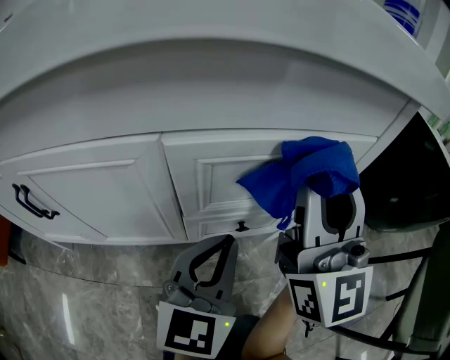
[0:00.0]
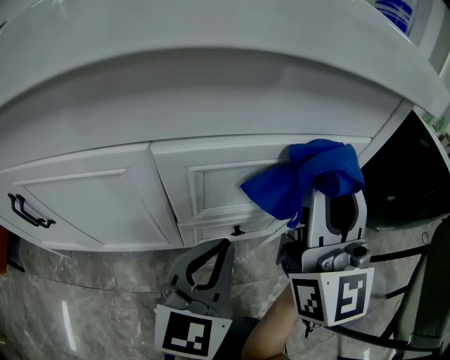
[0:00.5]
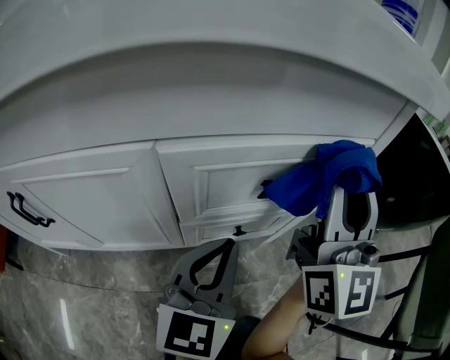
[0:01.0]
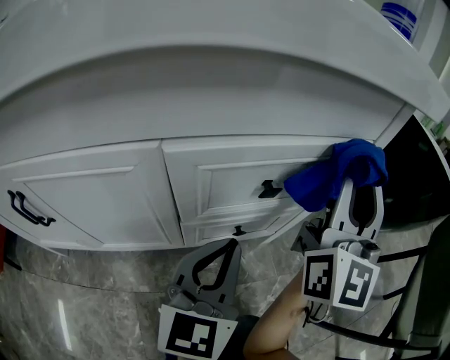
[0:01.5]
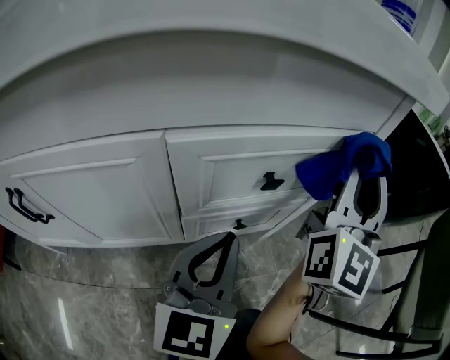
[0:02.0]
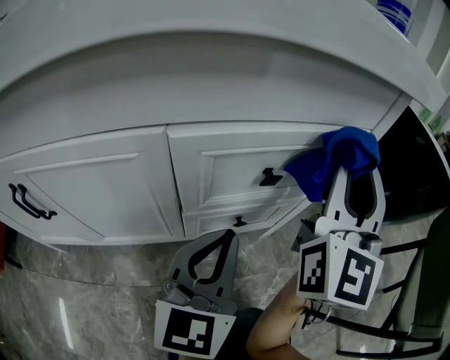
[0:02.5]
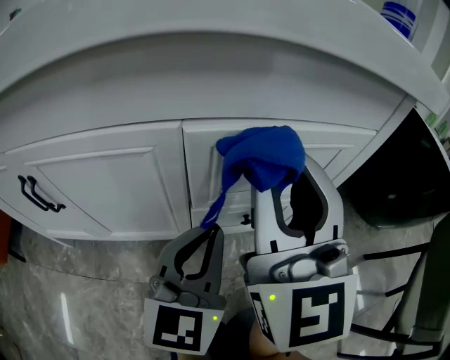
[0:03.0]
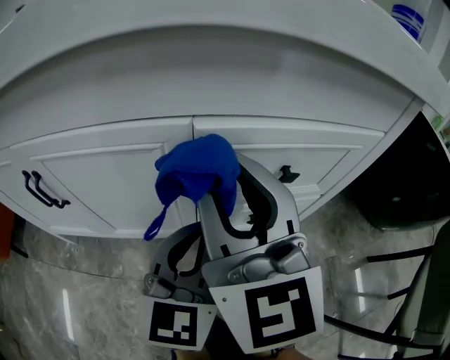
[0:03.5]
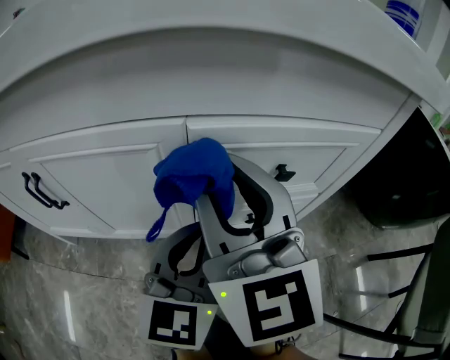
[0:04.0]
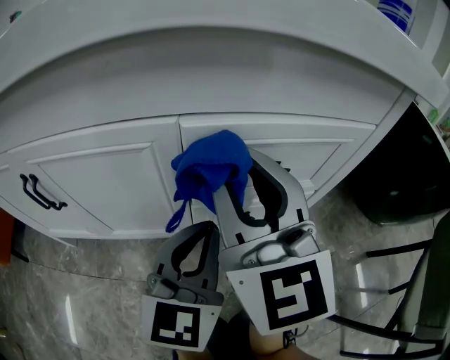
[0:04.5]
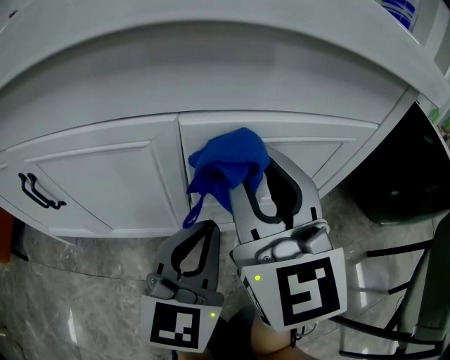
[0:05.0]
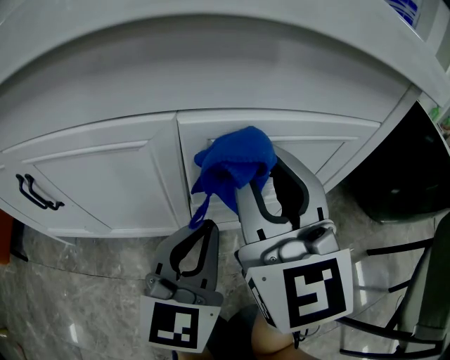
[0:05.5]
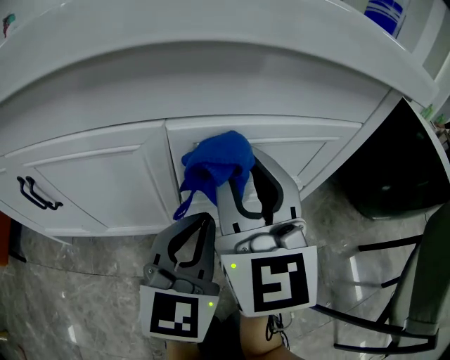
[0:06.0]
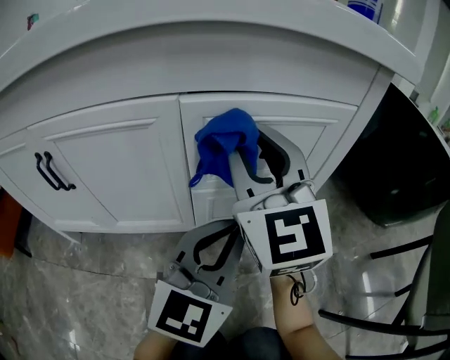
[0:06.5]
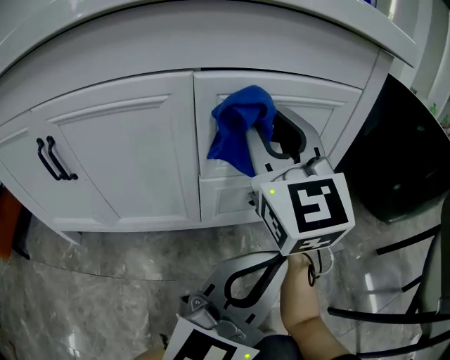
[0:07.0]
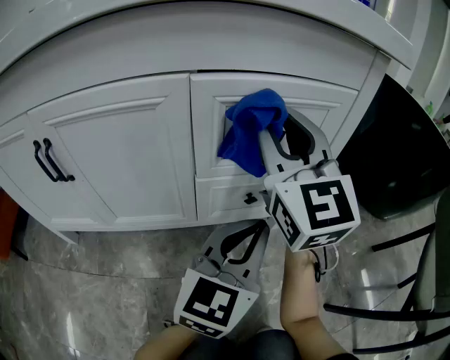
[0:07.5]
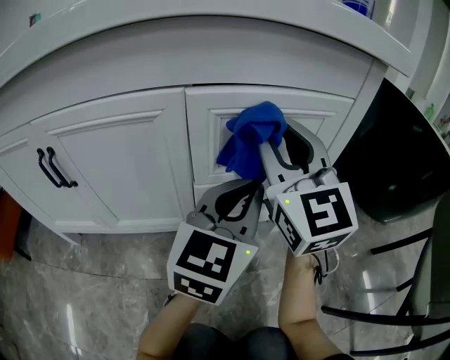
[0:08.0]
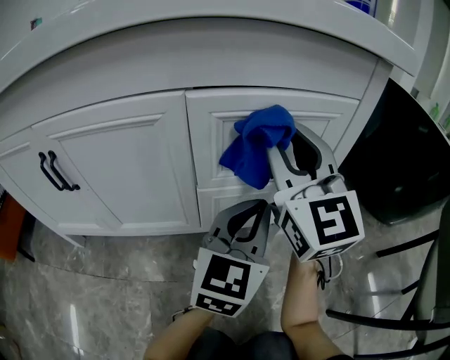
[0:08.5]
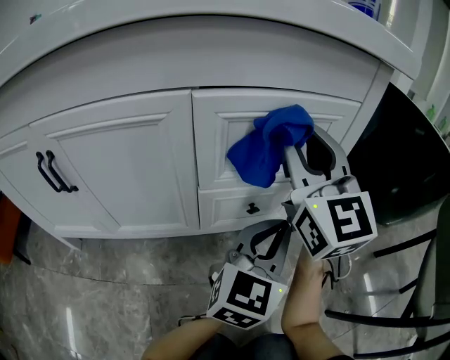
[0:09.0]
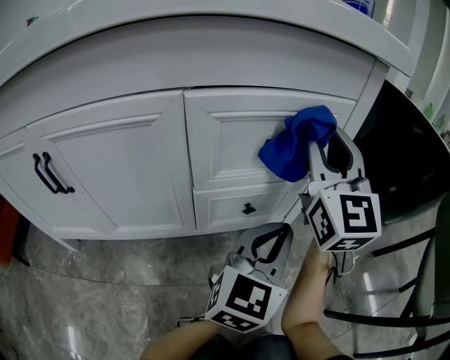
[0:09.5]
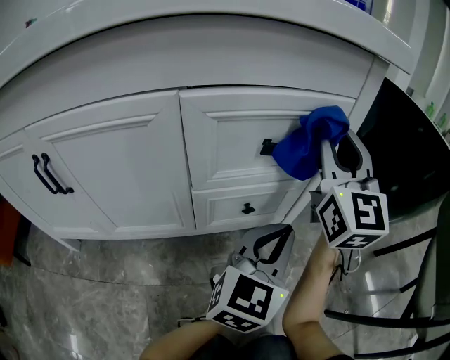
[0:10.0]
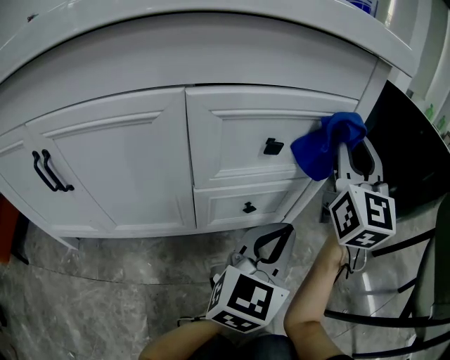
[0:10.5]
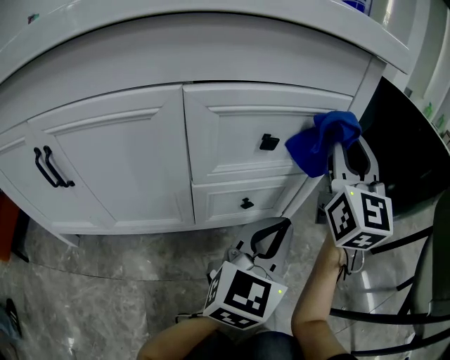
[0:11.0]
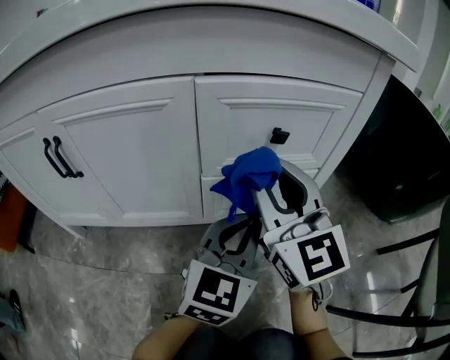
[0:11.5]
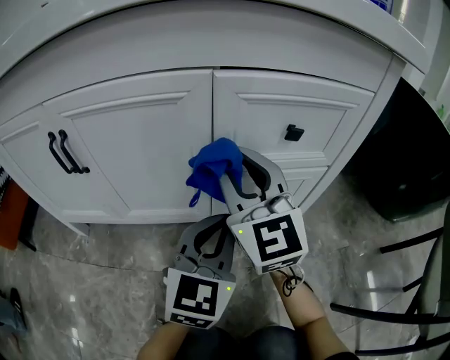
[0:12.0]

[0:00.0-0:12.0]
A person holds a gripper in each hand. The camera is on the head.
0:00.0 to 0:02.0: The right gripper heads to the right, covering about 10 cm, and turns by roughly 30 degrees.
0:02.0 to 0:04.0: The right gripper moves approximately 25 cm, and swivels about 50 degrees; the left gripper ends up some 5 cm from where it was.
0:04.0 to 0:06.0: The right gripper moves approximately 5 cm.
0:06.0 to 0:08.0: The left gripper is displaced to the right by roughly 5 cm, and goes backward and returns, some 10 cm each way.
0:08.0 to 0:10.0: The left gripper shifts about 10 cm to the right and downward, while the right gripper goes approximately 10 cm to the right.
0:10.0 to 0:12.0: The left gripper ends up some 15 cm from where it was, and turns by some 20 degrees. Meanwhile the right gripper moves roughly 25 cm, and turns by some 30 degrees.

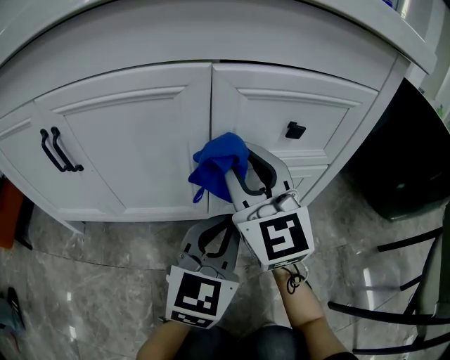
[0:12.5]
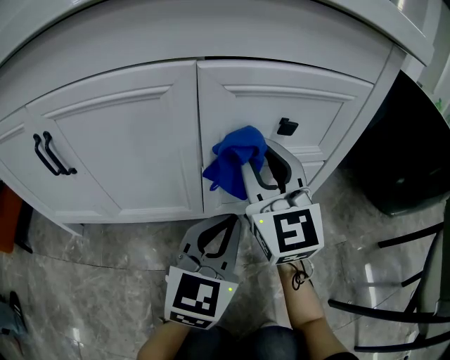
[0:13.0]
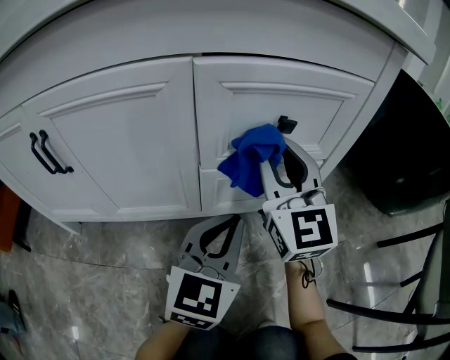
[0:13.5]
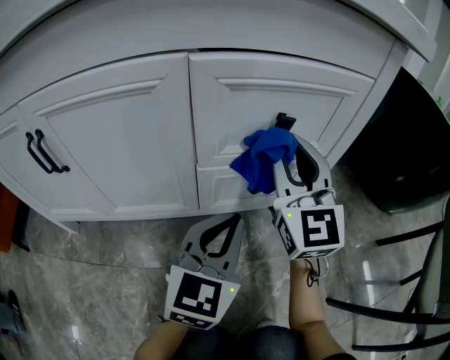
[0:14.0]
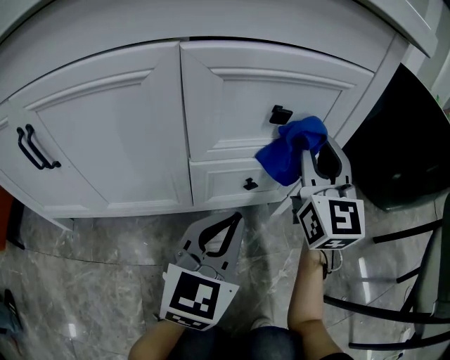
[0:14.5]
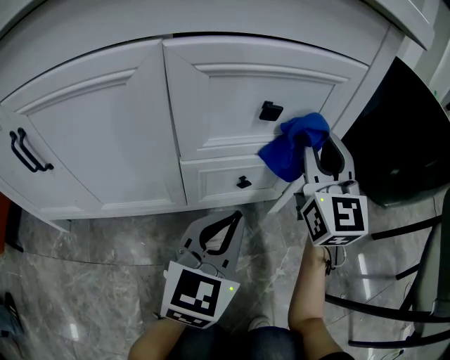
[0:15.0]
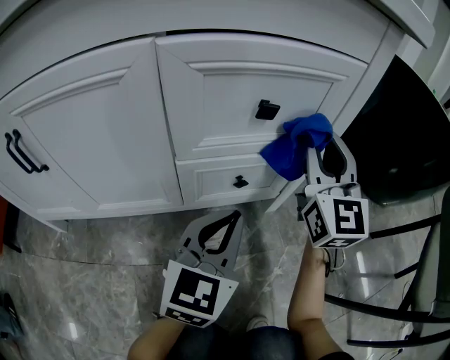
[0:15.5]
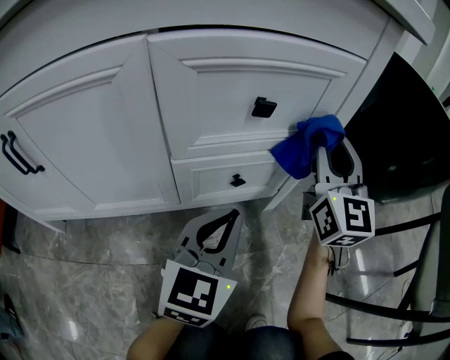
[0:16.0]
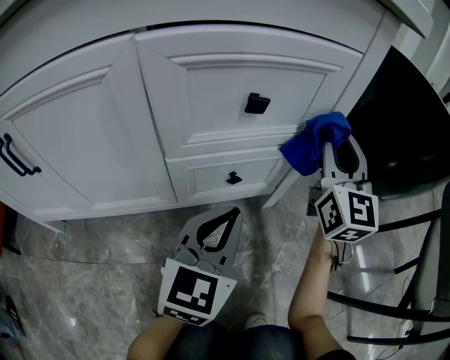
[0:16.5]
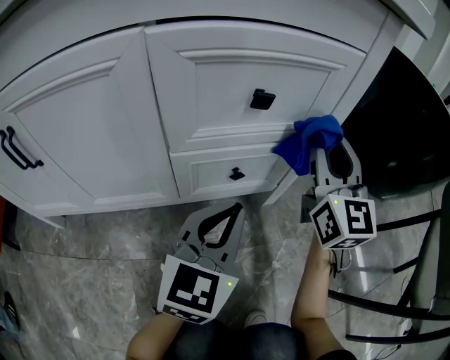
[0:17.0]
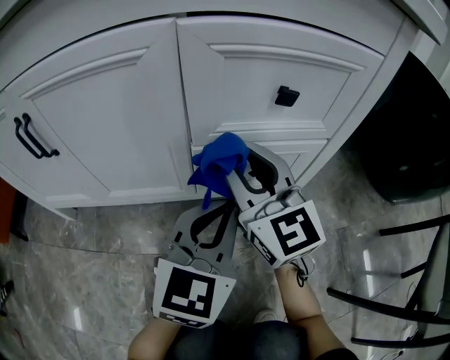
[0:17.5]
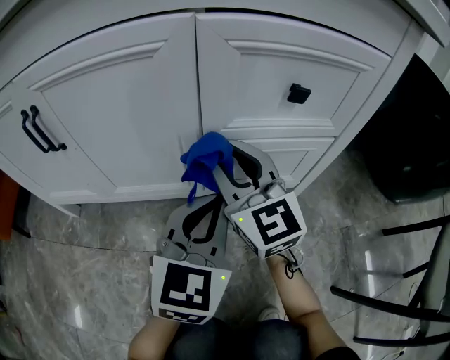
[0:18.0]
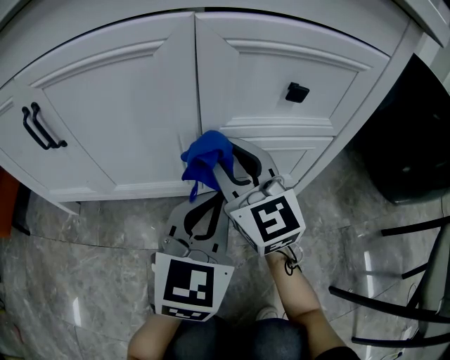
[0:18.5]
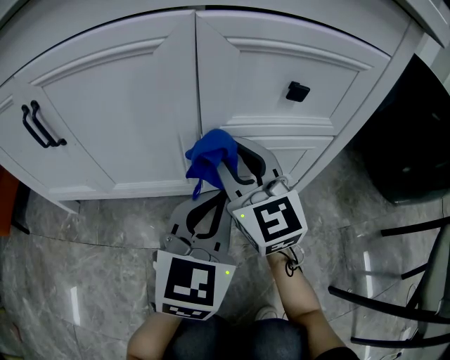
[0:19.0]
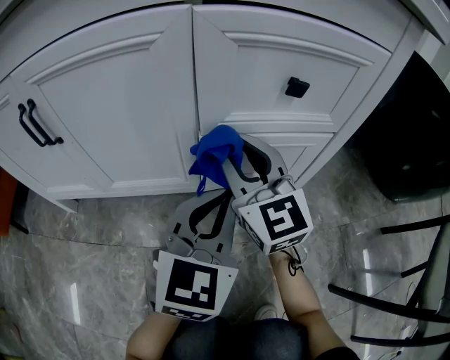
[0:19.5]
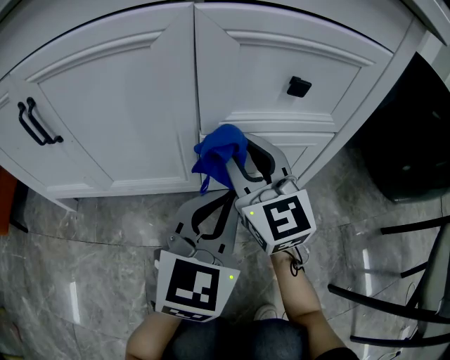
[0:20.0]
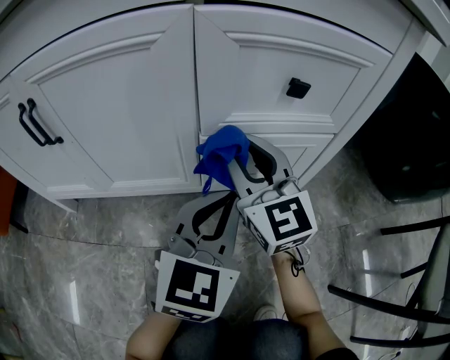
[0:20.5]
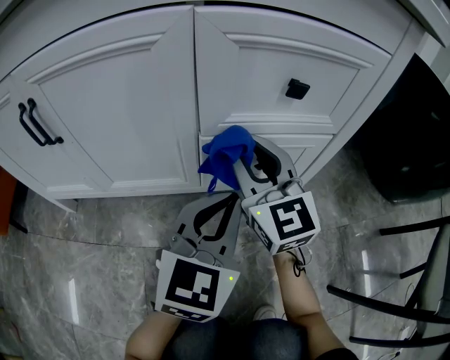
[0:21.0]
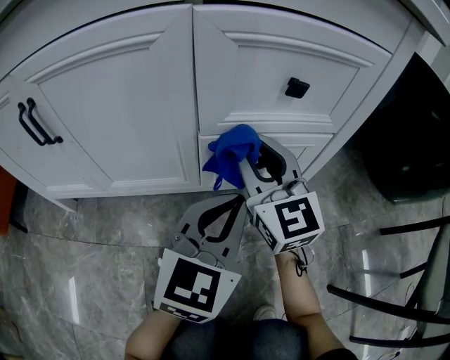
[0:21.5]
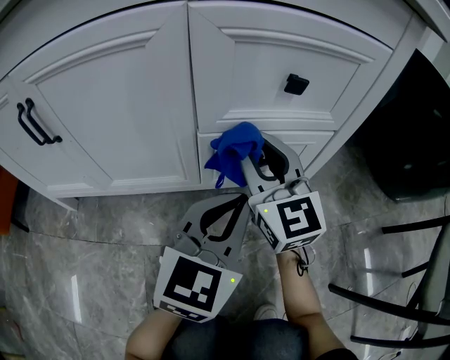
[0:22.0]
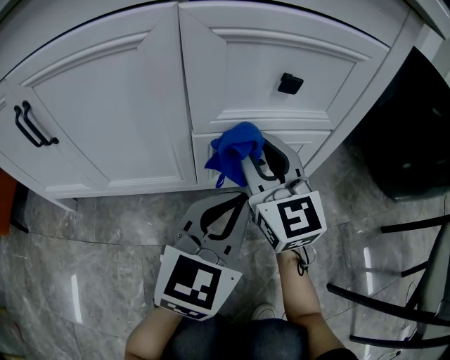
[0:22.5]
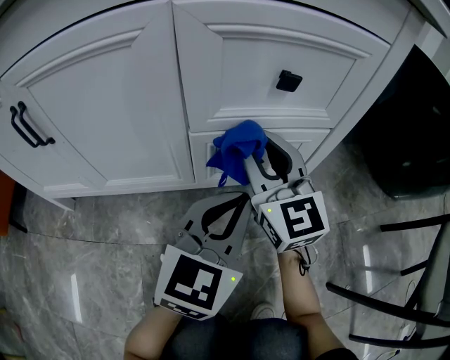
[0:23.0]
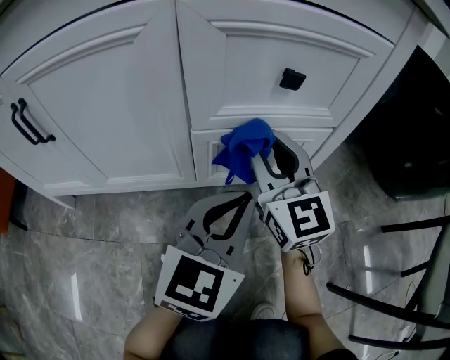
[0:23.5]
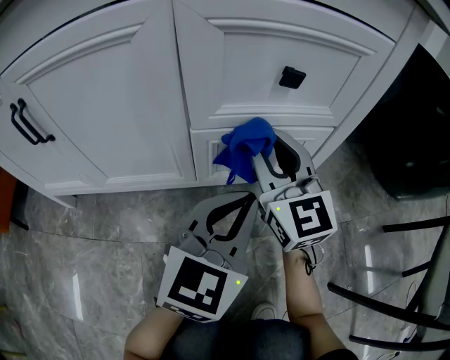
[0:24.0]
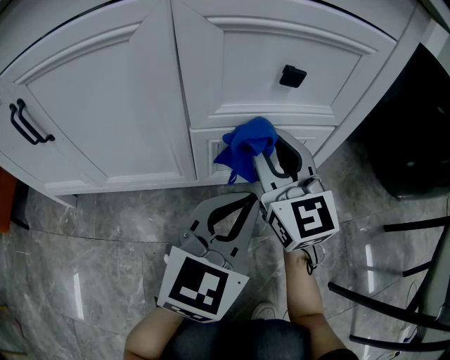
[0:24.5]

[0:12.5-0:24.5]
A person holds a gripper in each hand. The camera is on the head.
0:12.5 to 0:14.5: The right gripper travels to the right by approximately 20 cm, and swivels approximately 20 degrees.
0:14.5 to 0:16.5: The right gripper goes roughly 10 cm to the right.
0:16.5 to 0:18.5: The right gripper moves approximately 30 cm, and turns by roughly 40 degrees; the left gripper changes place by some 10 cm.
0:18.5 to 0:20.5: The grippers make only small movements.
0:20.5 to 0:24.5: The grippers make only small movements.

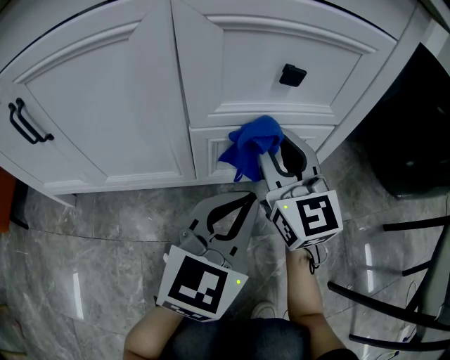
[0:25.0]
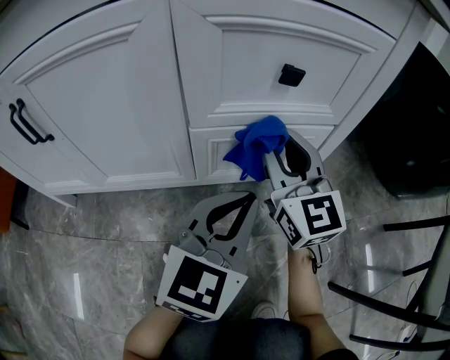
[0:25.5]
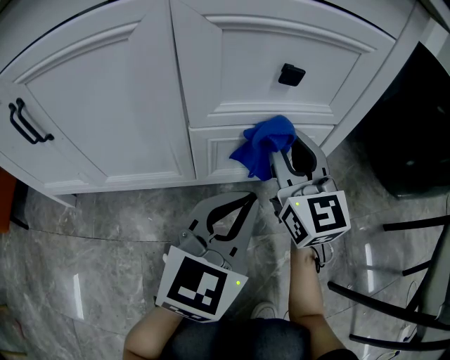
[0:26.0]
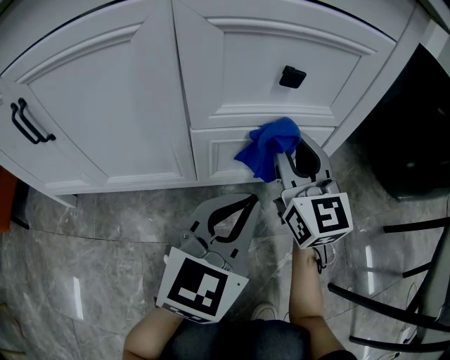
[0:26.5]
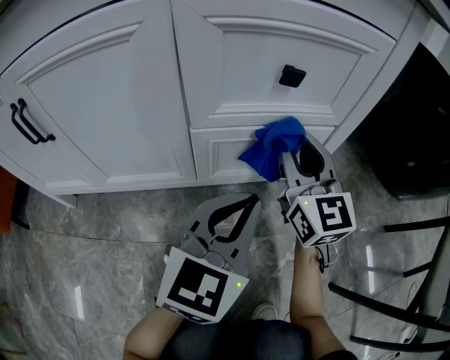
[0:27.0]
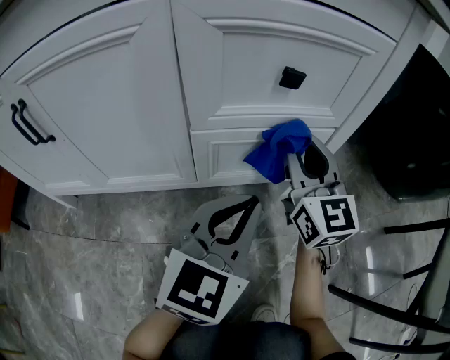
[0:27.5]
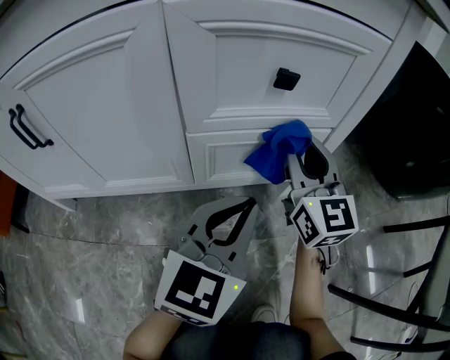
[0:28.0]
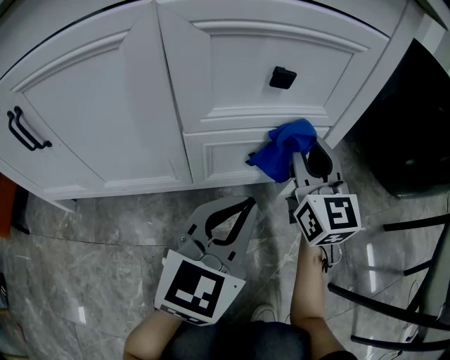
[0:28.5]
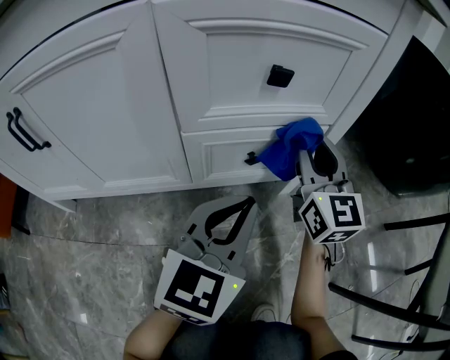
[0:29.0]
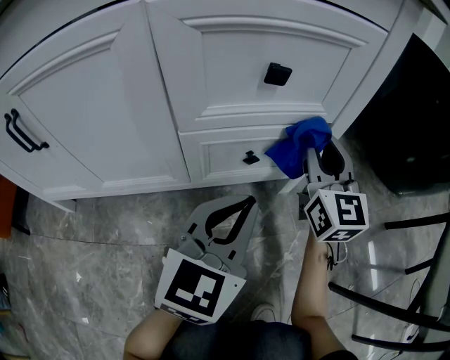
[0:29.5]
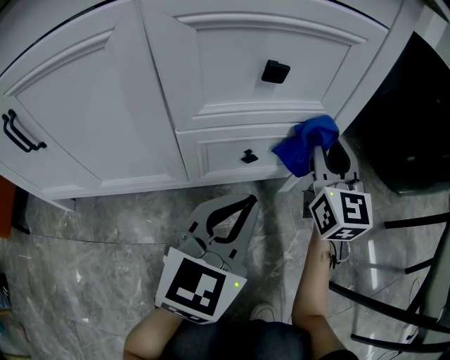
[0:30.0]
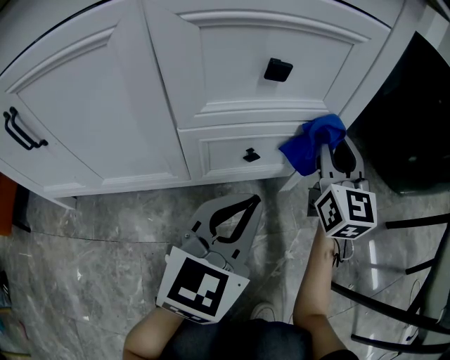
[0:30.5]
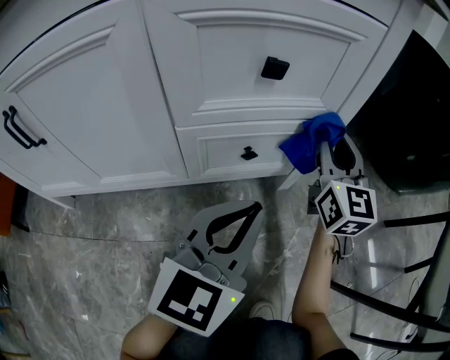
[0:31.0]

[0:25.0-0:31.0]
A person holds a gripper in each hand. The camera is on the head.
0:25.0 to 0:27.0: The grippers move only a little.
0:27.0 to 0:29.0: The right gripper goes some 5 cm to the right.
0:29.0 to 0:31.0: The right gripper is displaced to the right by about 5 cm.
